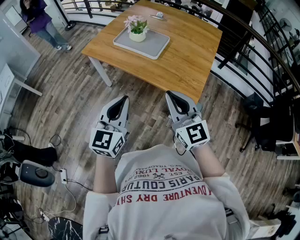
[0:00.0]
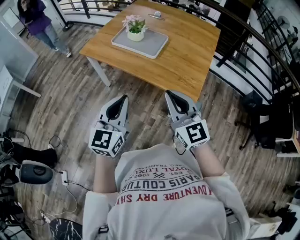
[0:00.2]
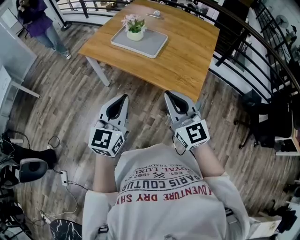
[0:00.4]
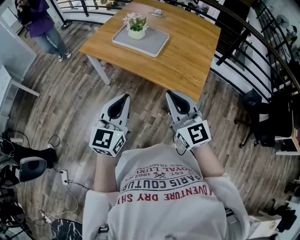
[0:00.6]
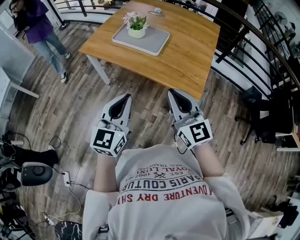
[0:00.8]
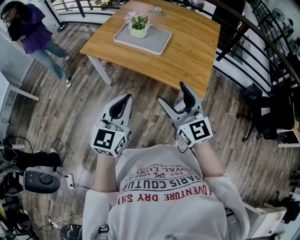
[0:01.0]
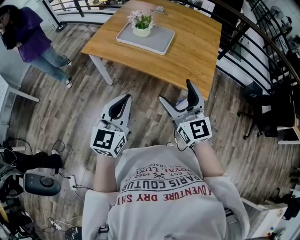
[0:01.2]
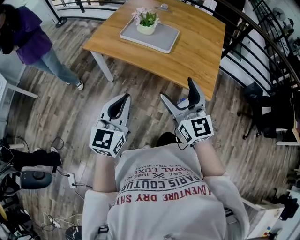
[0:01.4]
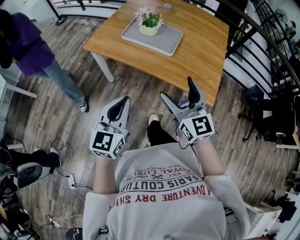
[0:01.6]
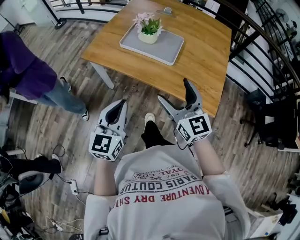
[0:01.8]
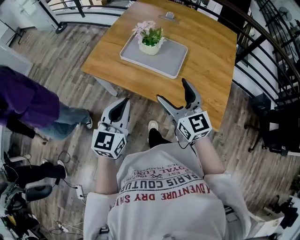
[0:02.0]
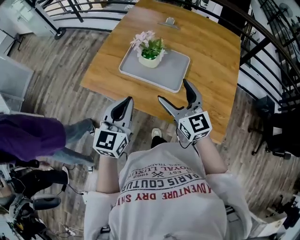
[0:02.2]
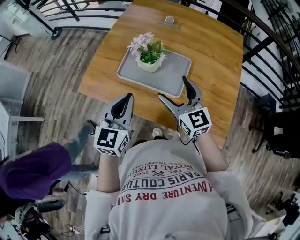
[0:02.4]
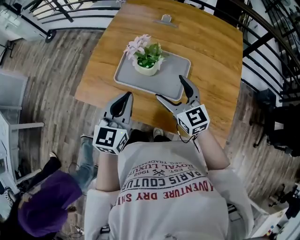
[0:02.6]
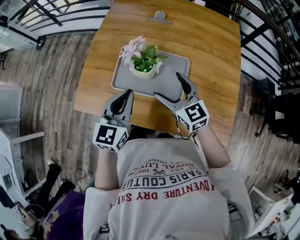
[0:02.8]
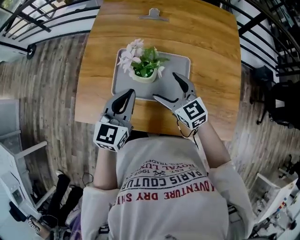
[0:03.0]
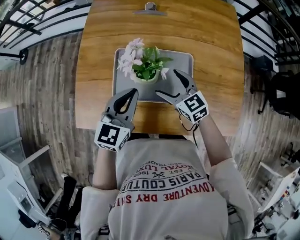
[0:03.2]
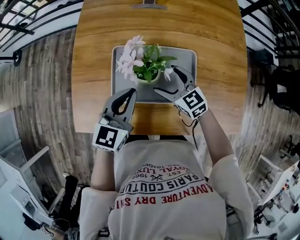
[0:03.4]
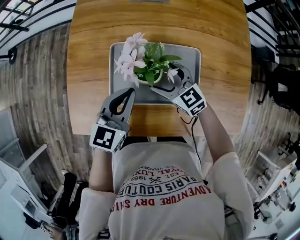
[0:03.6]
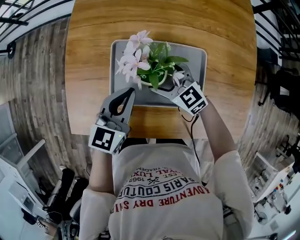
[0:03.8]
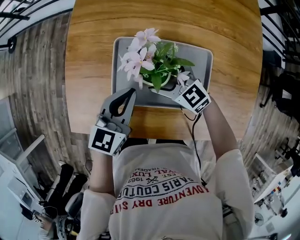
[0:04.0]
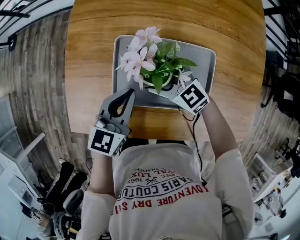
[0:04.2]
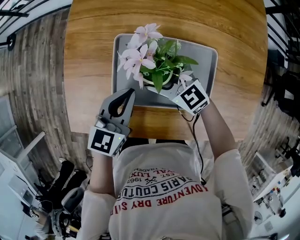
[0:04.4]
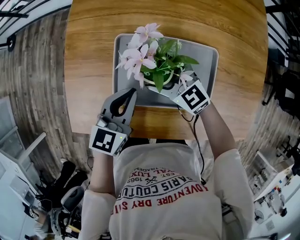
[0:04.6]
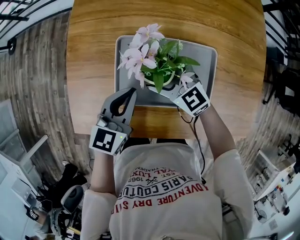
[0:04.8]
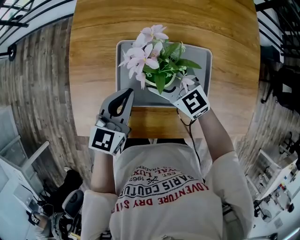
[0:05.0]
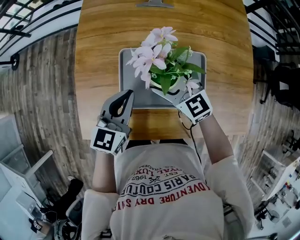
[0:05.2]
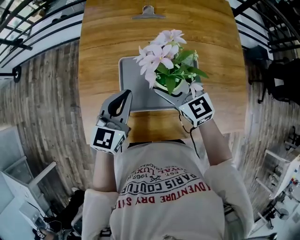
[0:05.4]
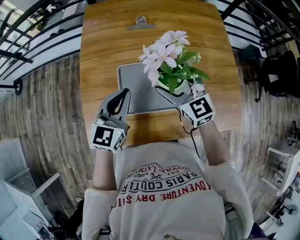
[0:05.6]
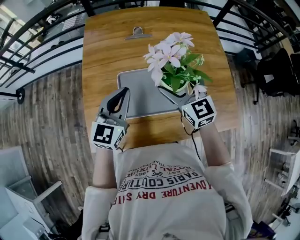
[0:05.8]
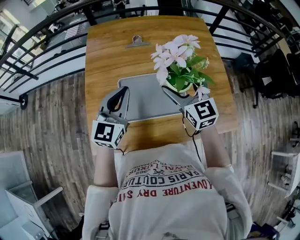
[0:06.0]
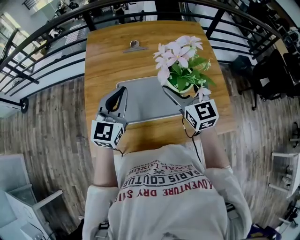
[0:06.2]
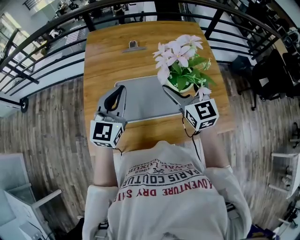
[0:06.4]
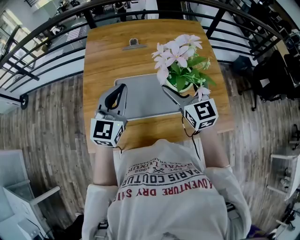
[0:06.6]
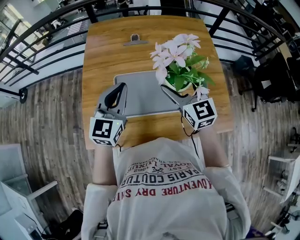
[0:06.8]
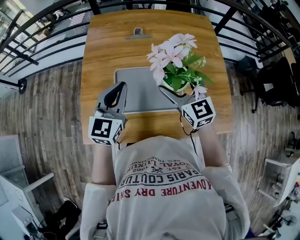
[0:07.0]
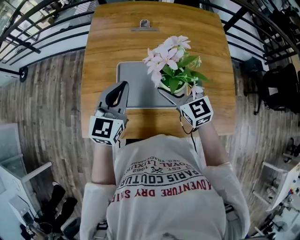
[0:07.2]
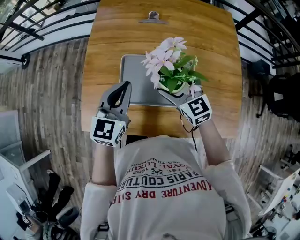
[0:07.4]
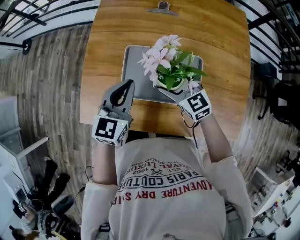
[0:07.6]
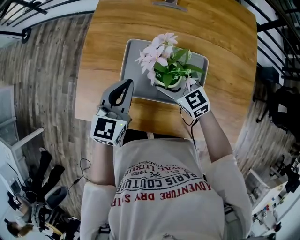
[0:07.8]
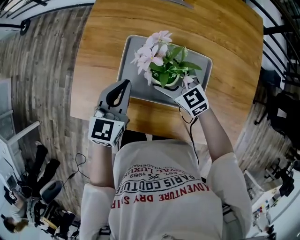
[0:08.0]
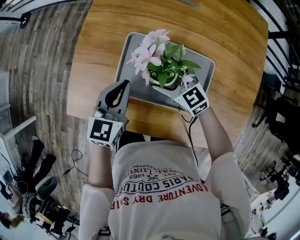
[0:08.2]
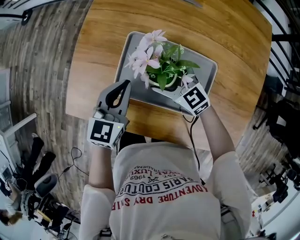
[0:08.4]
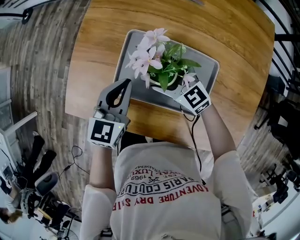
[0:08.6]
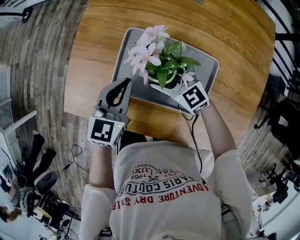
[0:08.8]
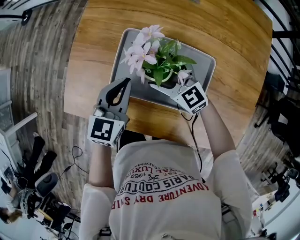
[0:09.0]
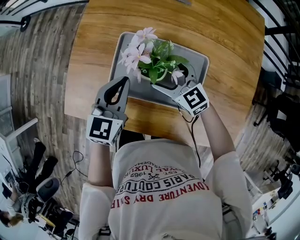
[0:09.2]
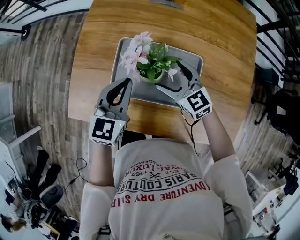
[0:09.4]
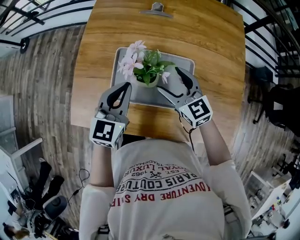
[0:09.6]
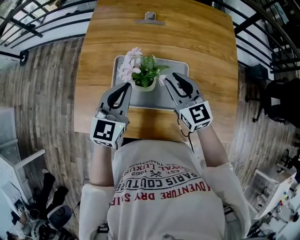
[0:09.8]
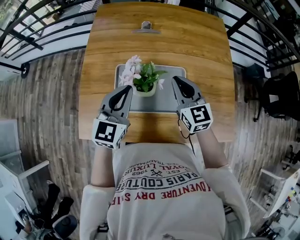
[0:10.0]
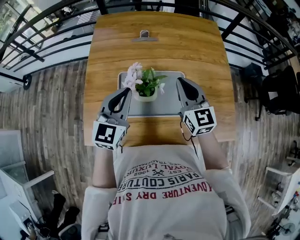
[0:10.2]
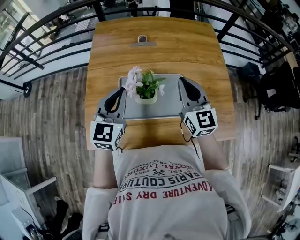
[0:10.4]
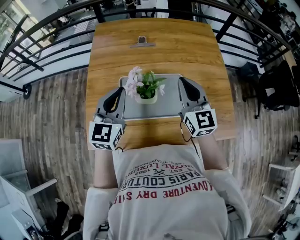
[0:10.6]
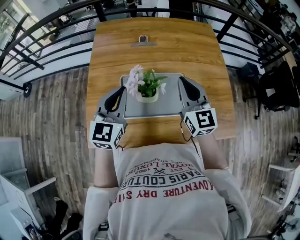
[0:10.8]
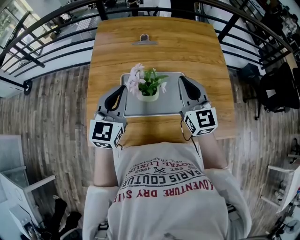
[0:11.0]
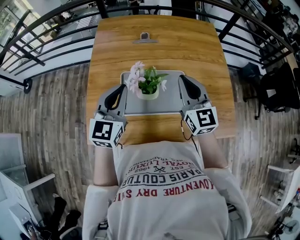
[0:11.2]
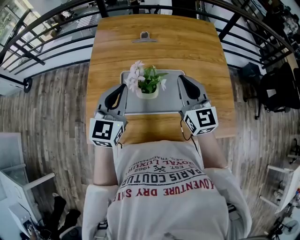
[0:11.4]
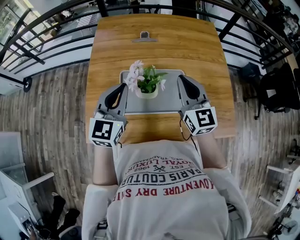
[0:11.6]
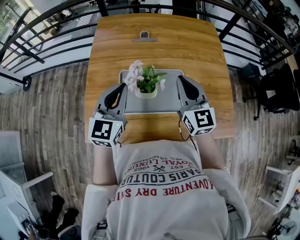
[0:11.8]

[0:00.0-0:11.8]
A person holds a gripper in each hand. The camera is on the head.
0:00.0 to 0:01.4: The grippers both shift to the left by roughly 10 cm. The right gripper opens its fingers.
0:01.4 to 0:03.0: Both grippers are carried forward, roughly 50 cm. The left gripper swivels approximately 20 degrees; the right gripper swivels about 20 degrees.
0:03.0 to 0:04.4: The right gripper moves downward, forward and to the left, roughly 15 cm. The left gripper shifts approximately 15 cm downward and forward.
0:04.4 to 0:06.0: The left gripper goes approximately 20 cm upward, and changes its angle by about 30 degrees; the right gripper travels upward and to the right by approximately 30 cm, and swivels about 40 degrees.
0:06.0 to 0:07.4: The right gripper goes roughly 10 cm downward, and swivels about 20 degrees.
0:07.4 to 0:08.8: The right gripper goes roughly 15 cm downward and to the left, and turns by some 30 degrees. Meanwhile the left gripper is displaced downward by some 15 cm.
0:08.8 to 0:10.4: Both grippers travel together upward, approximately 20 cm. The right gripper swivels roughly 50 degrees, and closes its fingers. The left gripper changes its angle by roughly 30 degrees.
0:10.4 to 0:11.8: The grippers move only a little.

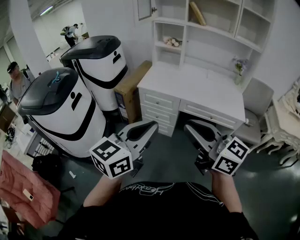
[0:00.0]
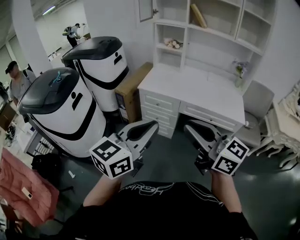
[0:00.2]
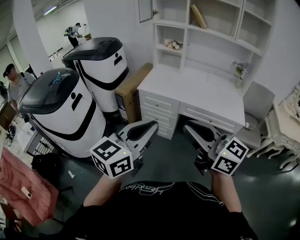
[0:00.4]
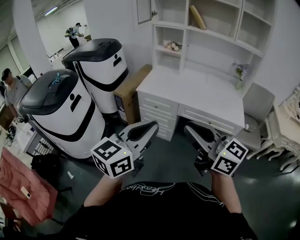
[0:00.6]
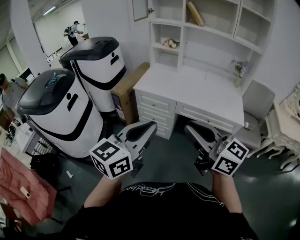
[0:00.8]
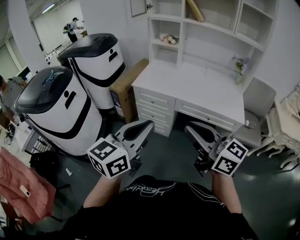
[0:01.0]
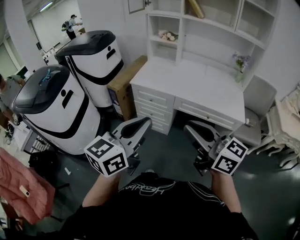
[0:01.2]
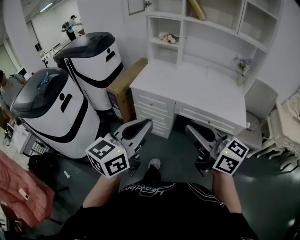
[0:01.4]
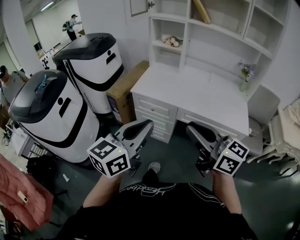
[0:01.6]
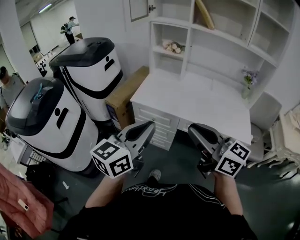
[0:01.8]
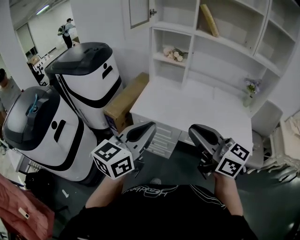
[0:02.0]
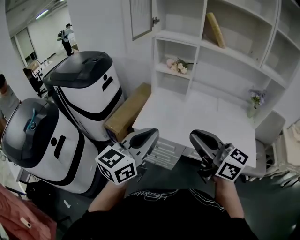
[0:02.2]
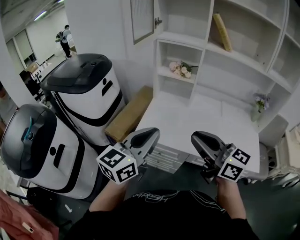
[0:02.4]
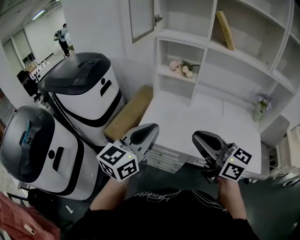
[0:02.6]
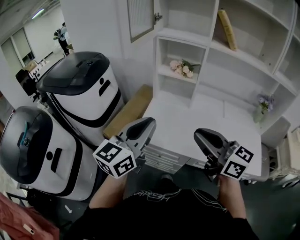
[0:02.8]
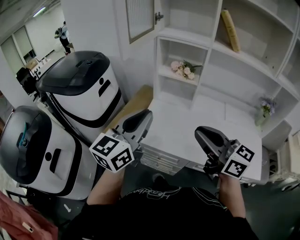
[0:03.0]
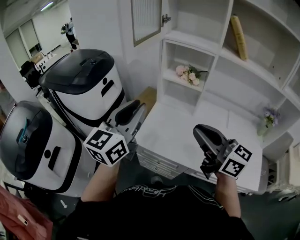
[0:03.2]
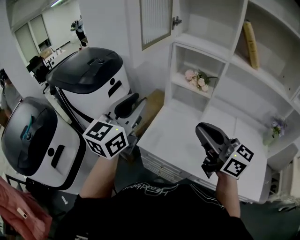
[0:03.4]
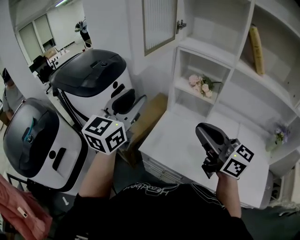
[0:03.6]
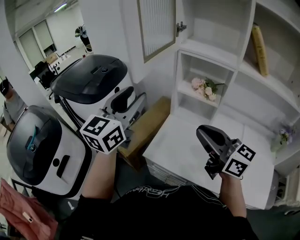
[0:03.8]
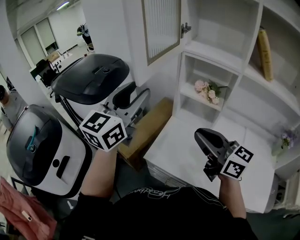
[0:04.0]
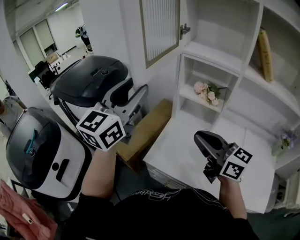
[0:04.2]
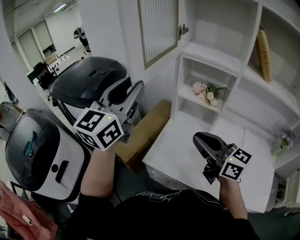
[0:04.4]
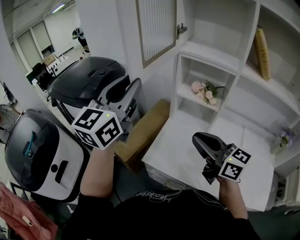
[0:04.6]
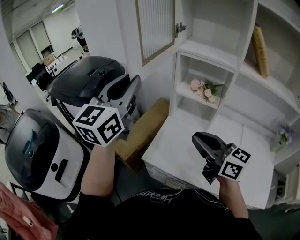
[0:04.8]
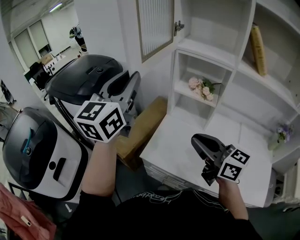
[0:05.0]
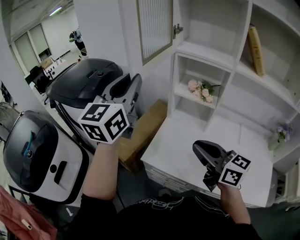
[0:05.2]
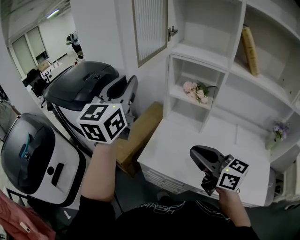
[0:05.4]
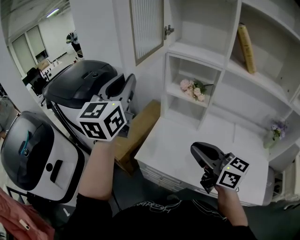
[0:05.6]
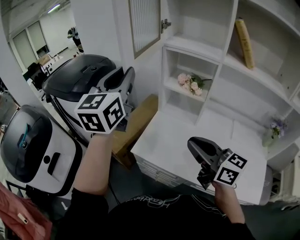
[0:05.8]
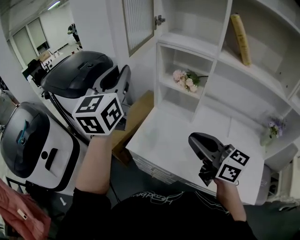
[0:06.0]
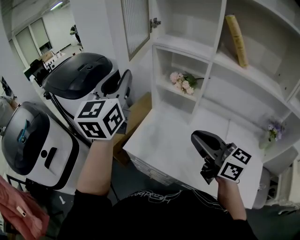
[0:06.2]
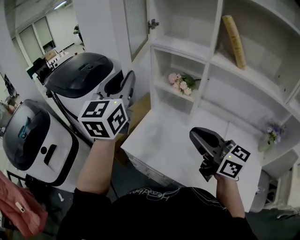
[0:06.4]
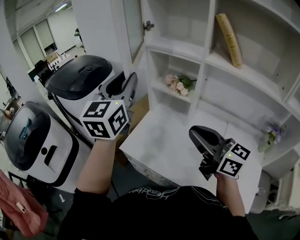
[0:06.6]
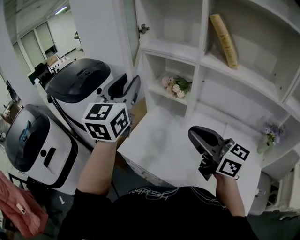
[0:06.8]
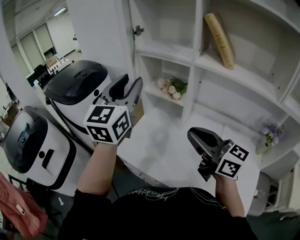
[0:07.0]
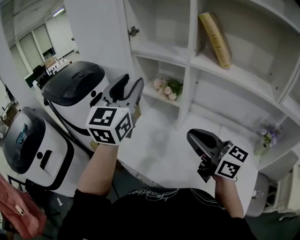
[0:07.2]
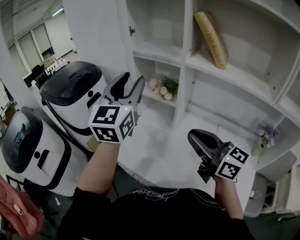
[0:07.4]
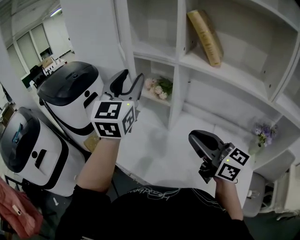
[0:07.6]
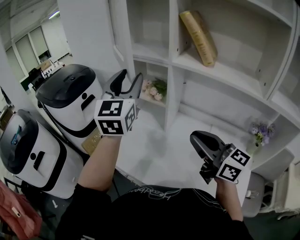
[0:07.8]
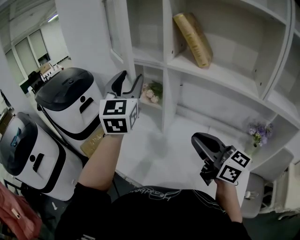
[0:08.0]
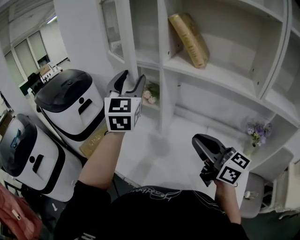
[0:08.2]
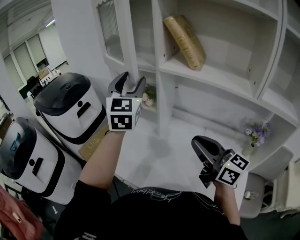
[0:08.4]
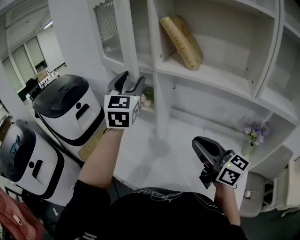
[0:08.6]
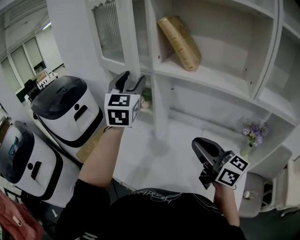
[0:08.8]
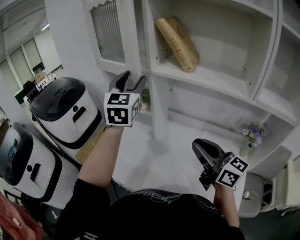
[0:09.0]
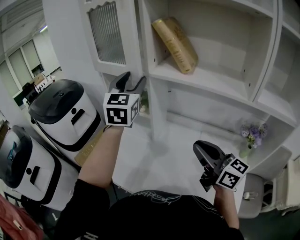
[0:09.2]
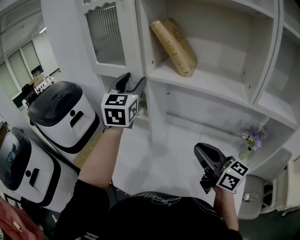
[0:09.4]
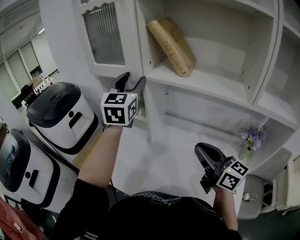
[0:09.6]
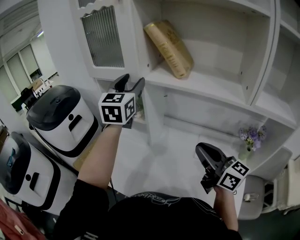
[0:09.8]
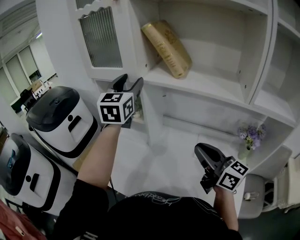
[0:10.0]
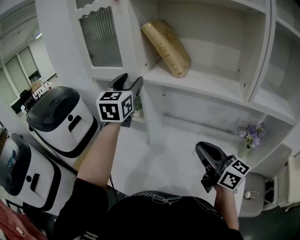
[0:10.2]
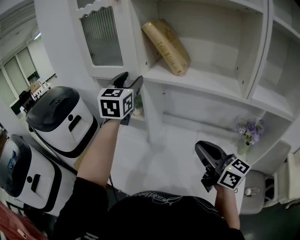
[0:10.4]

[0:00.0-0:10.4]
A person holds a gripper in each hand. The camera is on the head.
0:00.0 to 0:01.4: The left gripper heads forward and to the right, covering some 10 cm. The right gripper travels forward, to the right and downward by approximately 15 cm.
0:01.4 to 0:03.0: The two grippers travel together, forward, some 50 cm.
0:03.0 to 0:04.4: The left gripper travels forward and upward by about 20 cm, and opens up, while the right gripper moves forward, roughly 15 cm.
0:04.4 to 0:06.0: The right gripper heads backward and to the right, covering some 10 cm, while the left gripper shifts by about 5 cm.
0:06.0 to 0:07.4: The two grippers go roughly 15 cm to the right. The left gripper opens up.
0:07.4 to 0:09.0: The two grippers go about 15 cm to the right.
0:09.0 to 0:10.4: The grippers stay close to where they were, moving slightly.

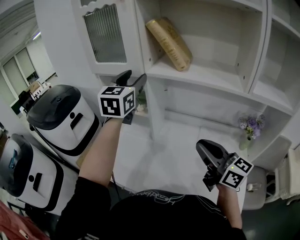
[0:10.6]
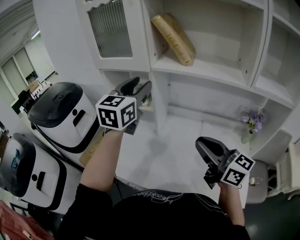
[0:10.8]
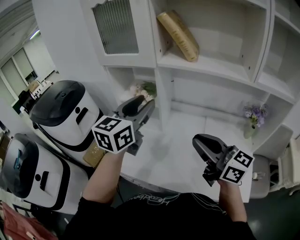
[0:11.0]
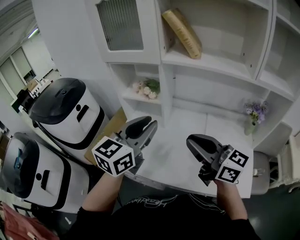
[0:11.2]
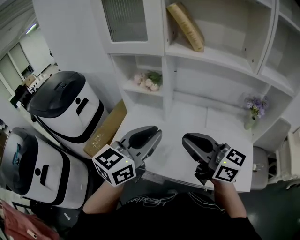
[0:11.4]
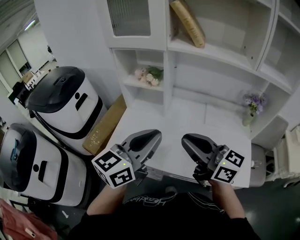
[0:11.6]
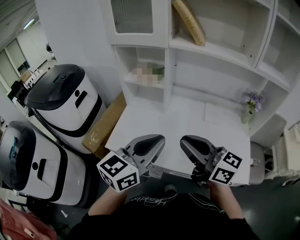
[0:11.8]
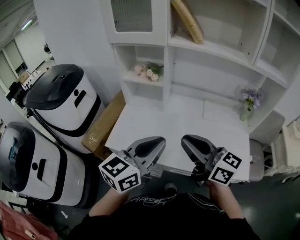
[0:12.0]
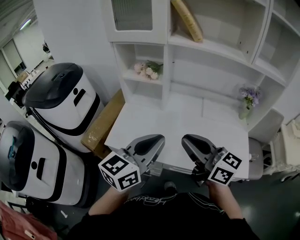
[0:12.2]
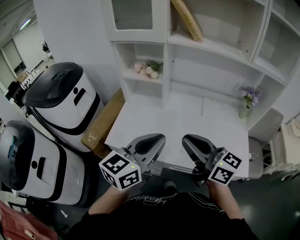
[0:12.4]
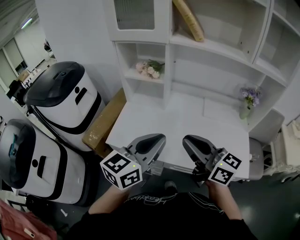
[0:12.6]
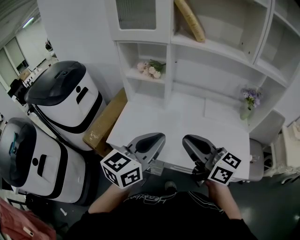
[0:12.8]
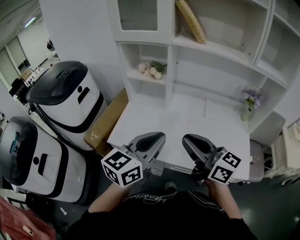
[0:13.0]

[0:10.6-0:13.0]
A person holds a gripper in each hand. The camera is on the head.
0:10.6 to 0:11.8: The left gripper goes about 35 cm backward and downward, swivels some 40 degrees, and closes up. Meanwhile the right gripper shifts some 20 cm to the left and backward.
0:11.8 to 0:13.0: The grippers stay close to where they were, moving slightly.
